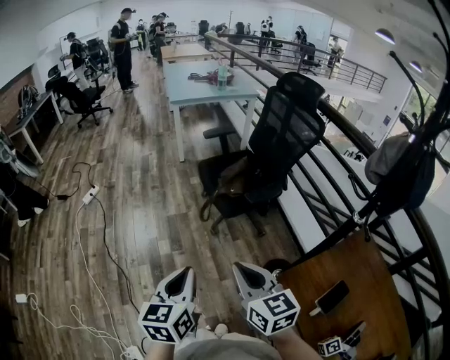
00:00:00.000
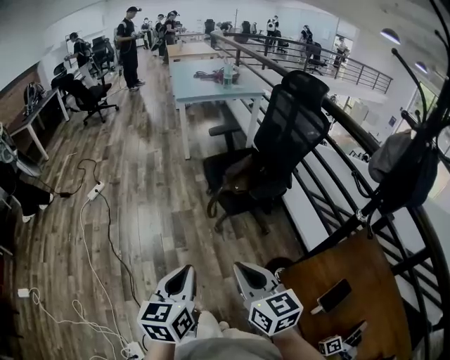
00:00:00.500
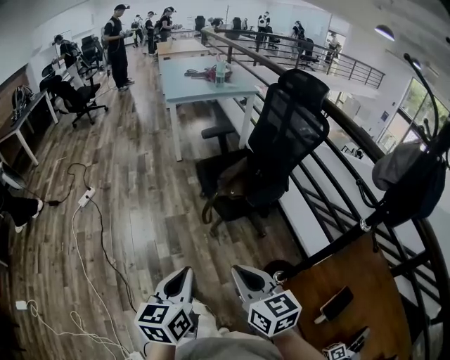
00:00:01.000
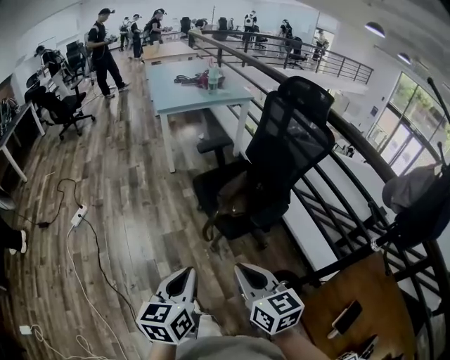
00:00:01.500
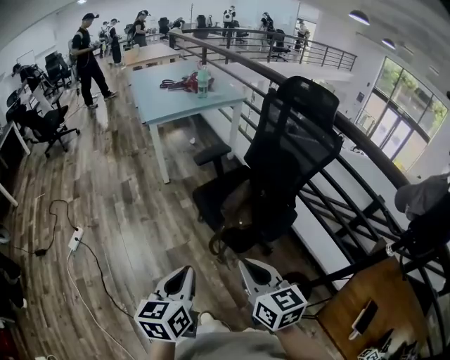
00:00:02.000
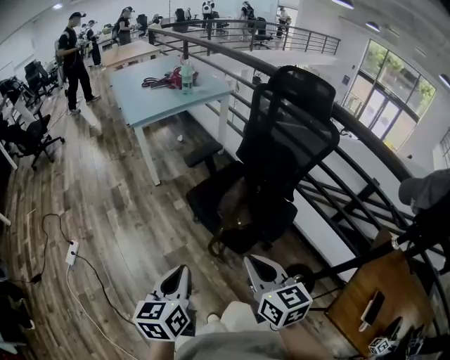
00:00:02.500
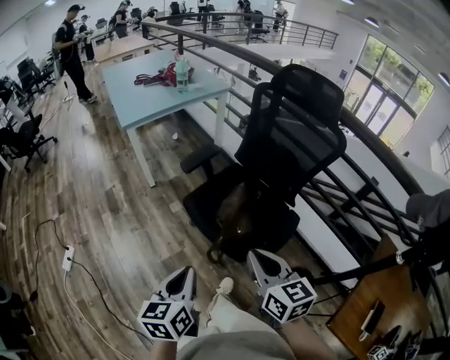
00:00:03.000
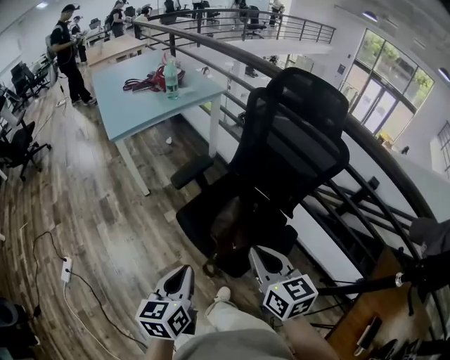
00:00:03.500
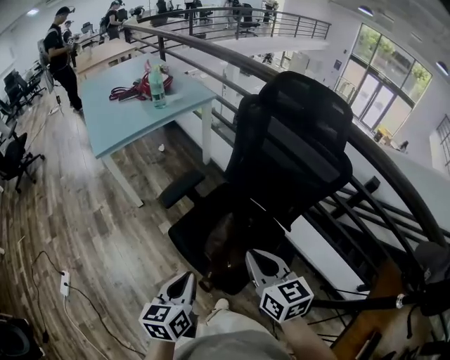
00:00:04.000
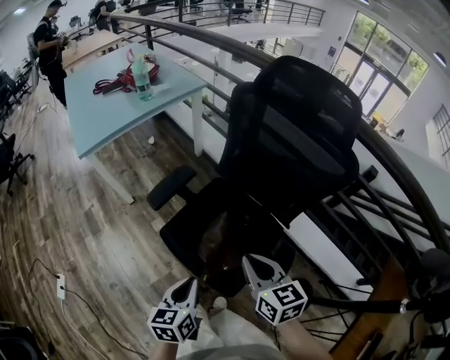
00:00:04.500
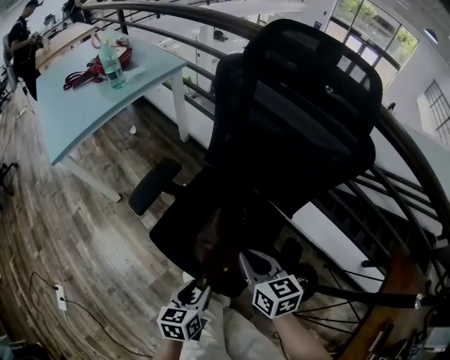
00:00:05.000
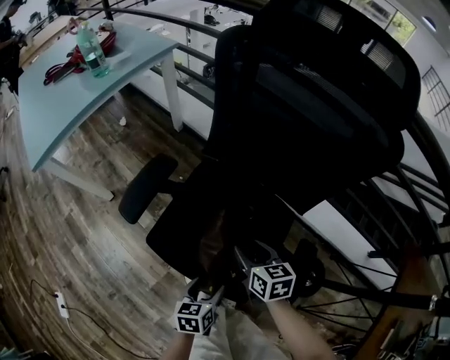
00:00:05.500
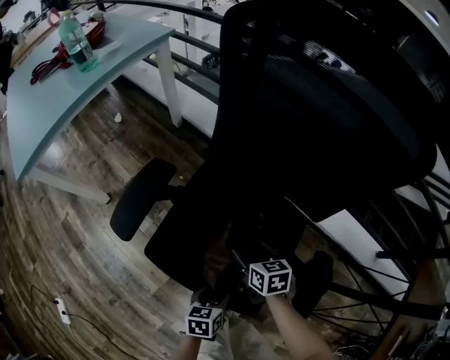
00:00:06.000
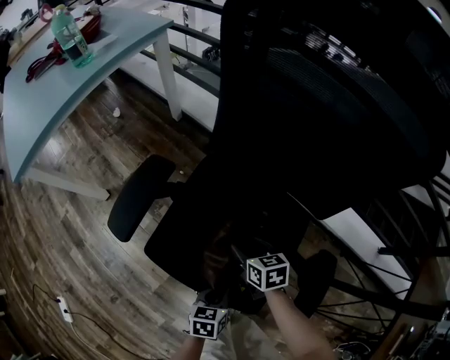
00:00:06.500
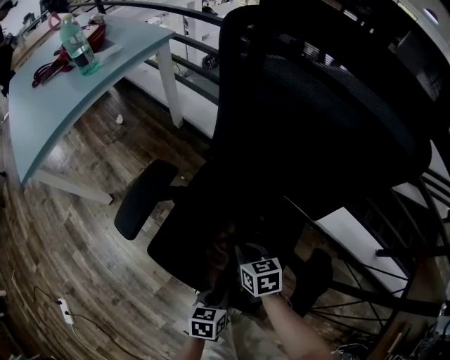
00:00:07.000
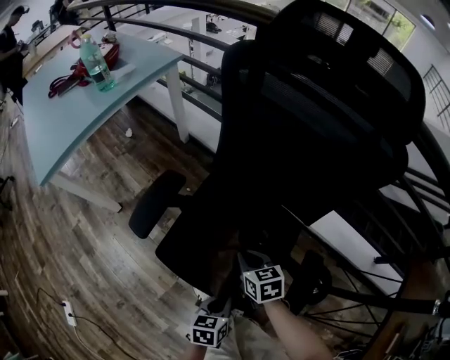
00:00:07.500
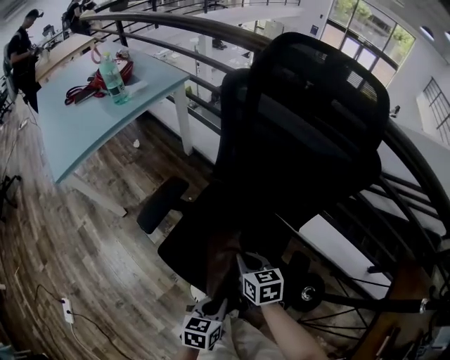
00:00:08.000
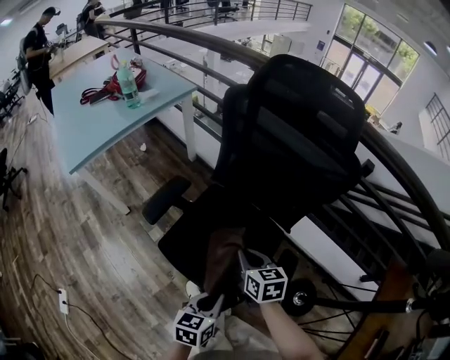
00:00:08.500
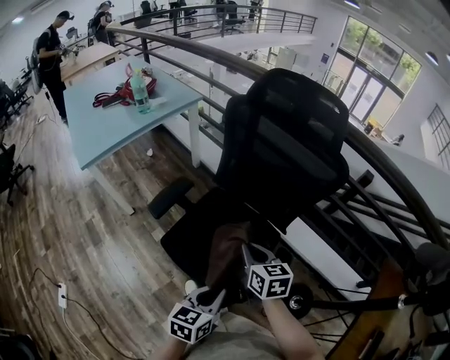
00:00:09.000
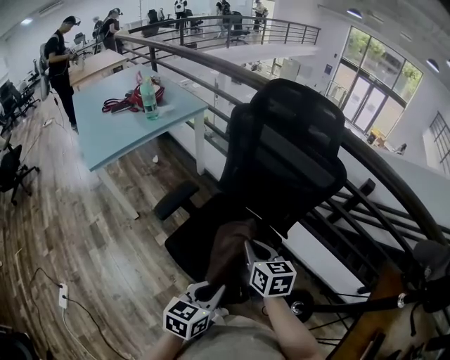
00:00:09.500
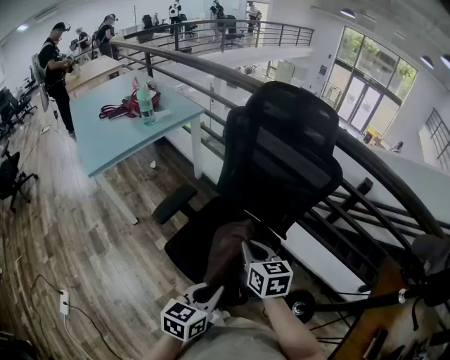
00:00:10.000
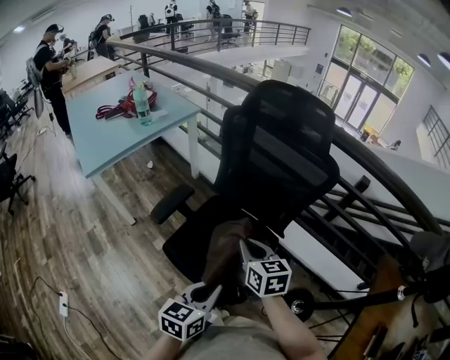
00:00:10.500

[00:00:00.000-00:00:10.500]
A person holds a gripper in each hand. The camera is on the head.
00:00:00.000 to 00:00:02.000: The two grippers go some 30 cm forward.
00:00:02.000 to 00:00:04.000: Both grippers move forward, about 30 cm.
00:00:04.000 to 00:00:06.500: The right gripper shifts roughly 50 cm downward and forward, turns by some 40 degrees, and opens its fingers, while the left gripper goes about 40 cm downward, changes its angle by about 40 degrees, and opens, then closes again.
00:00:06.500 to 00:00:08.500: Both grippers travel together upward, some 25 cm. The right gripper closes.
00:00:08.500 to 00:00:10.500: Both grippers move upward, some 10 cm.

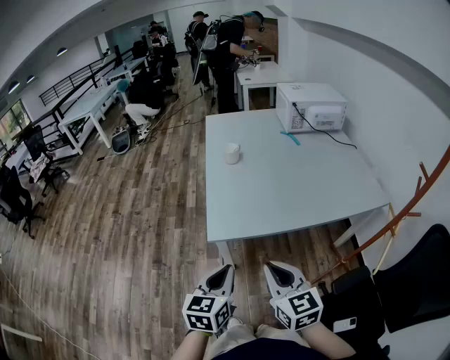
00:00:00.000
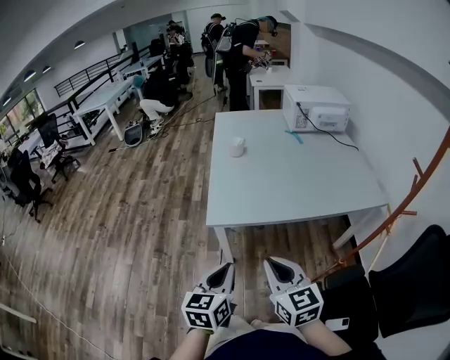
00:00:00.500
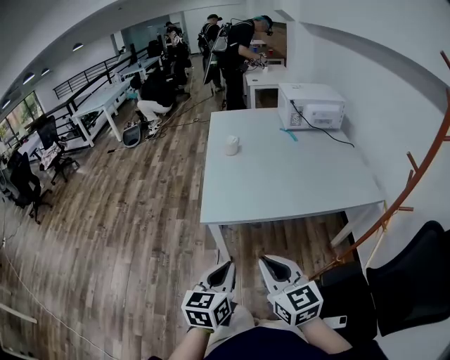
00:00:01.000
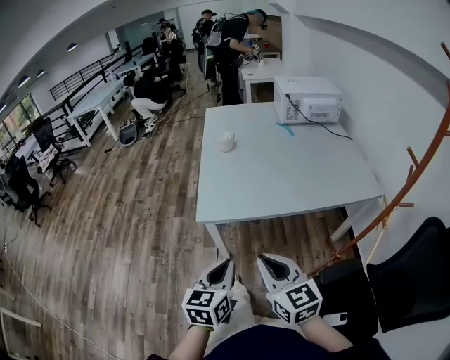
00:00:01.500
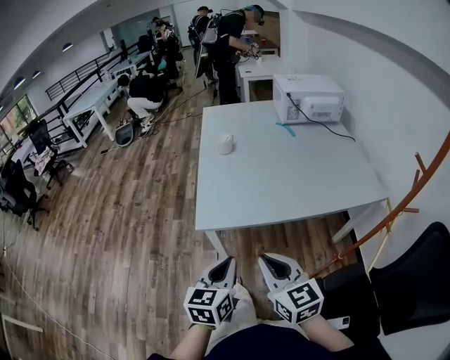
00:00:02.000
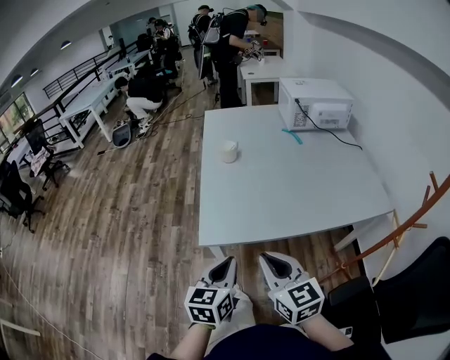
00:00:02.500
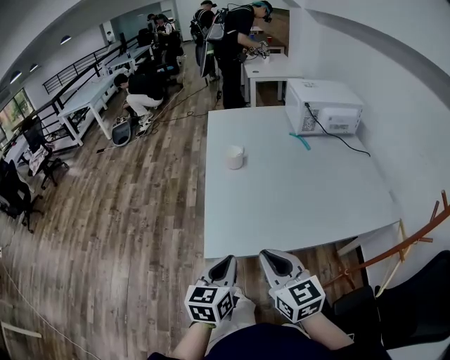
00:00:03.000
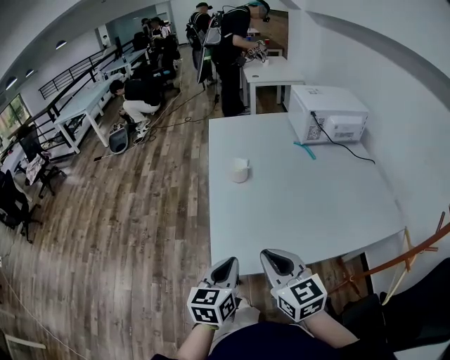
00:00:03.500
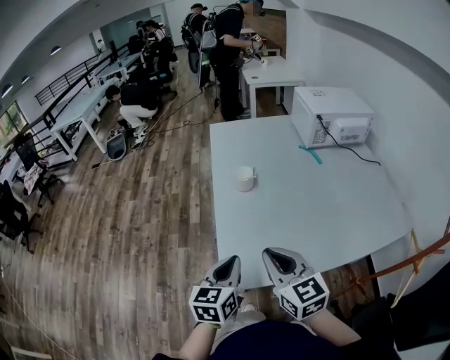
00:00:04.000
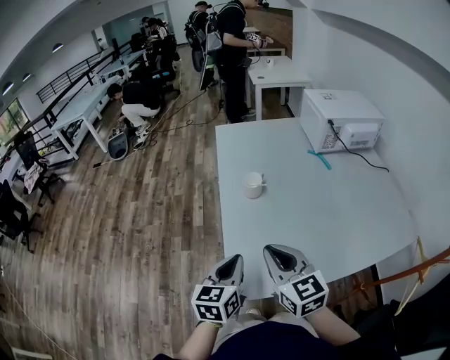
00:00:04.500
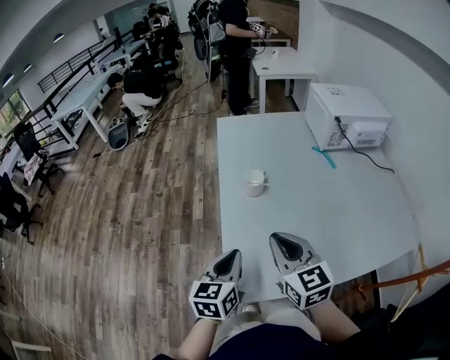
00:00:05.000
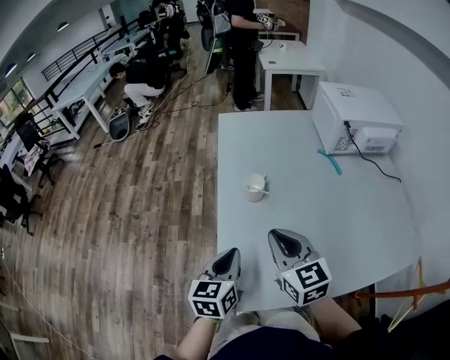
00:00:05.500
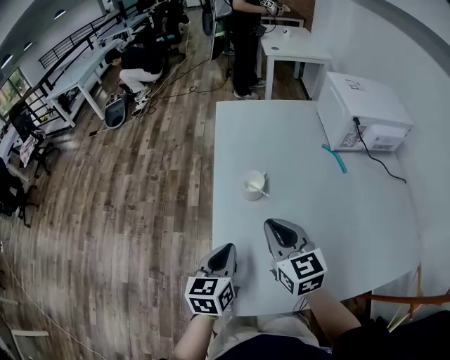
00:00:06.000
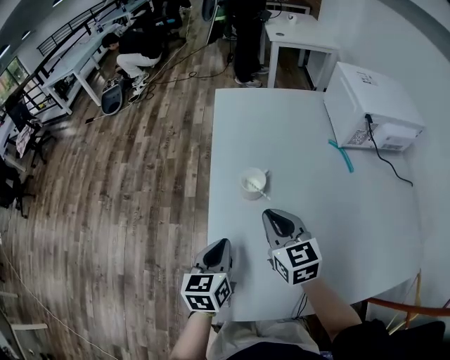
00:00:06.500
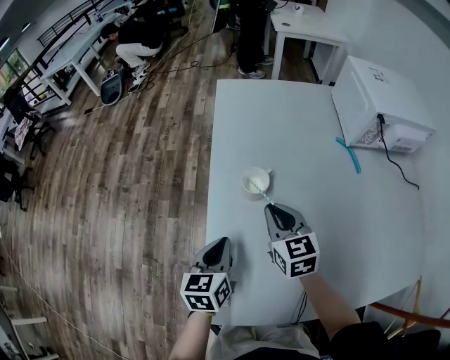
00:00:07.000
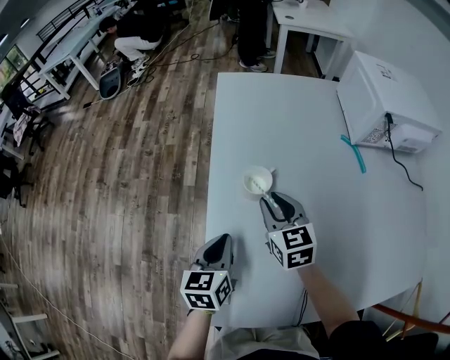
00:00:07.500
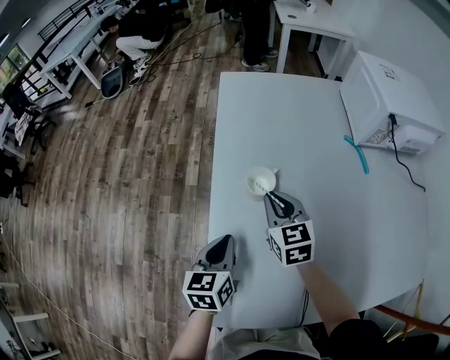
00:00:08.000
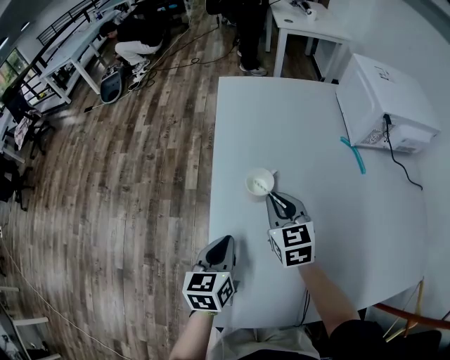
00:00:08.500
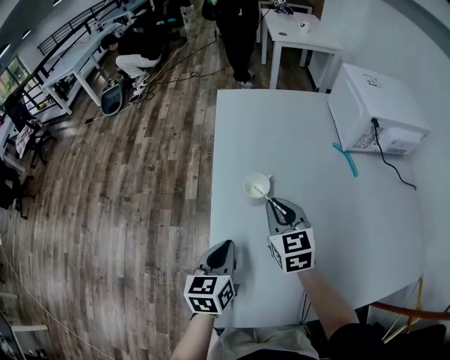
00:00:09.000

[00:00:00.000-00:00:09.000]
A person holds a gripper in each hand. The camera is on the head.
00:00:00.000 to 00:00:02.000: The left gripper shifts roughly 5 cm to the right, and travels backward and back again, about 10 cm each way; the right gripper goes backward and returns, approximately 10 cm each way.
00:00:02.000 to 00:00:04.500: Both grippers travel together forward, about 30 cm.
00:00:04.500 to 00:00:07.000: The two grippers go about 25 cm forward and downward.
00:00:07.000 to 00:00:09.000: The grippers make only small movements.

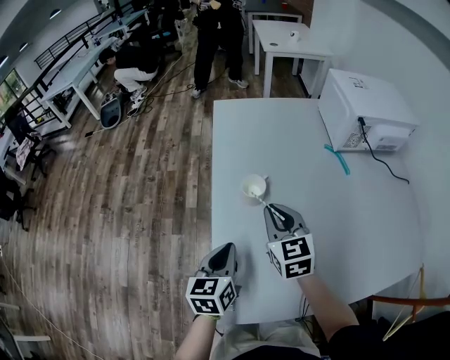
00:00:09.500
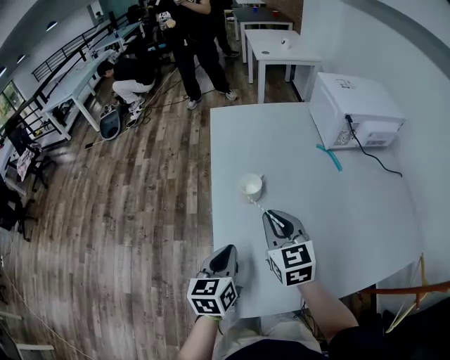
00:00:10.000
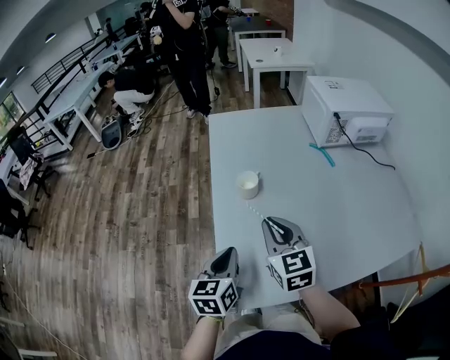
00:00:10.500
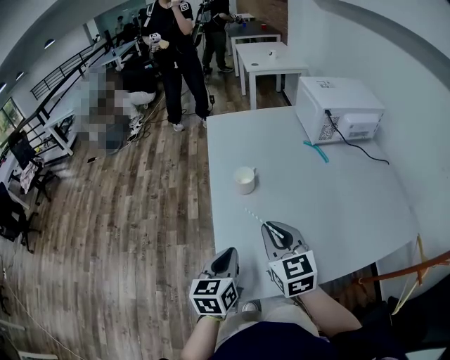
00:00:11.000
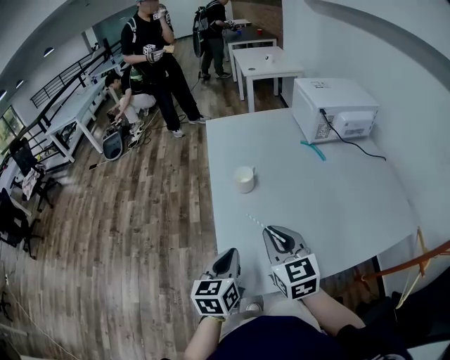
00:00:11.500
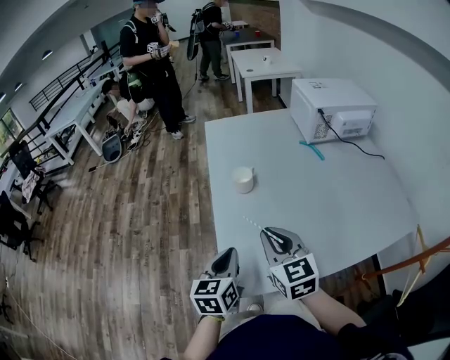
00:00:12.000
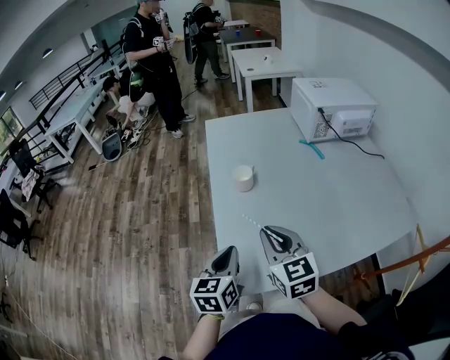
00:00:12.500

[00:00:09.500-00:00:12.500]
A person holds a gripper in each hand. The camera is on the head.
00:00:09.500 to 00:00:11.000: Both grippers move backward, some 15 cm.
00:00:11.000 to 00:00:12.500: The grippers make only small movements.

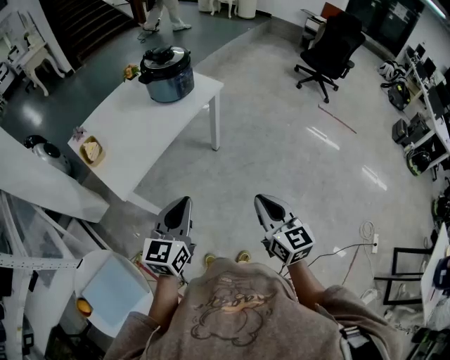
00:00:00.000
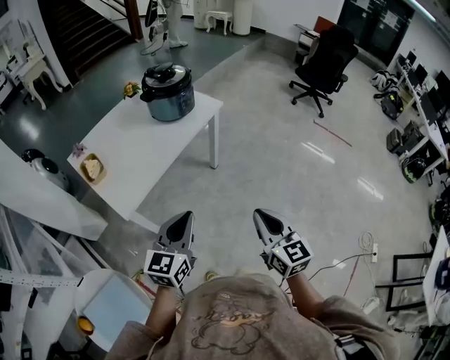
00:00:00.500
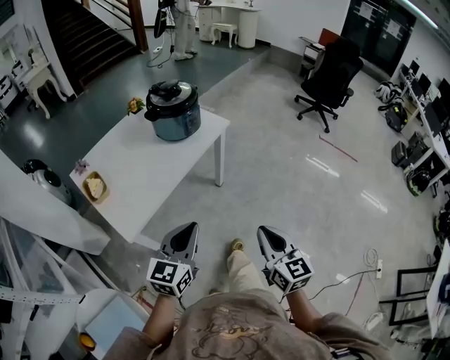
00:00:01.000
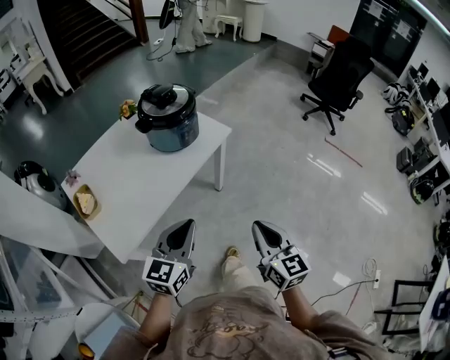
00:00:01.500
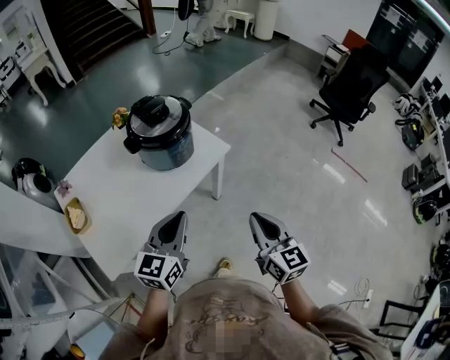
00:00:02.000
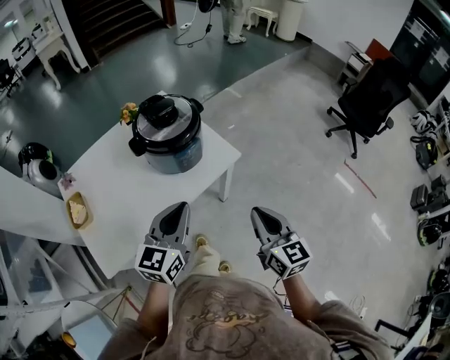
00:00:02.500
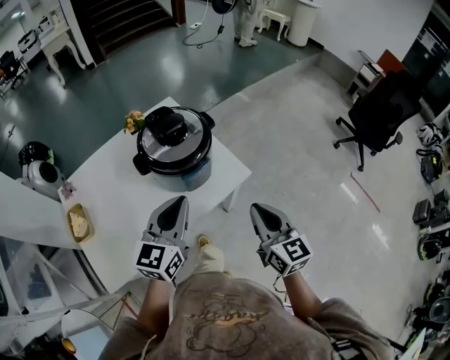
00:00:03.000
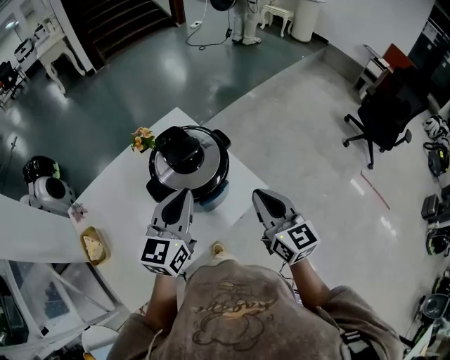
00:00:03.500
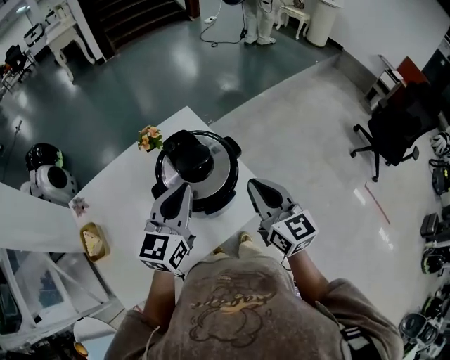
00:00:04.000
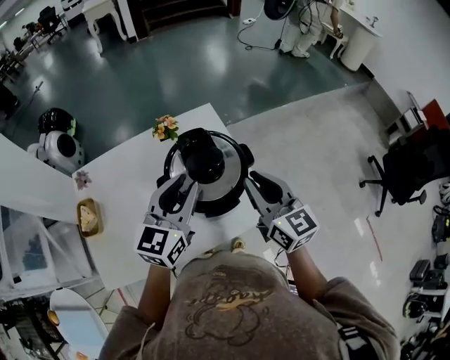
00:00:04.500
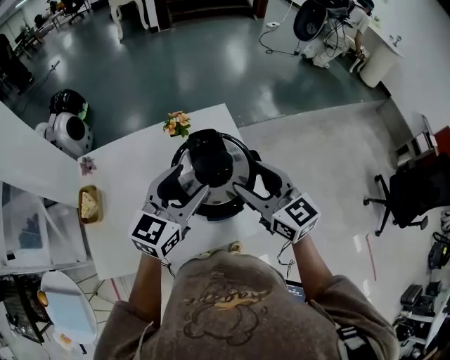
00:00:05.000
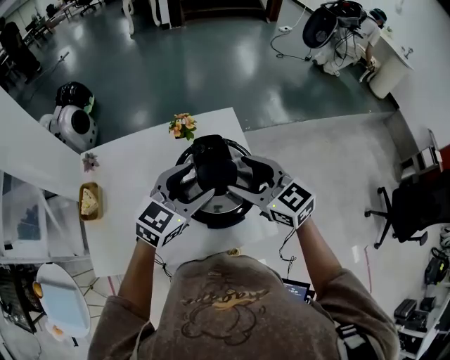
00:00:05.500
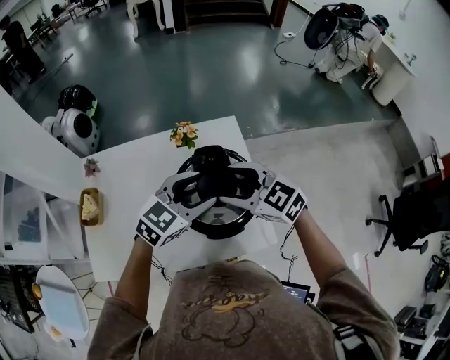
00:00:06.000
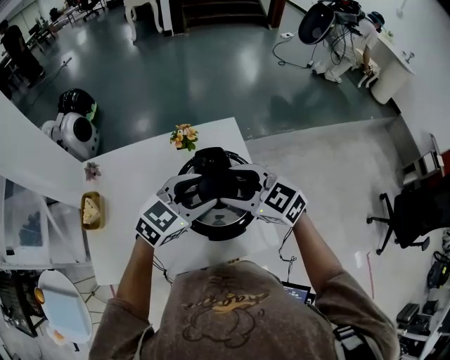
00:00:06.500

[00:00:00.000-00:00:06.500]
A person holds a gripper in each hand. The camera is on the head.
00:00:00.000 to 00:00:02.000: The two grippers go approximately 35 cm forward.
00:00:02.000 to 00:00:04.500: The left gripper ends up approximately 30 cm from where it was, and swivels approximately 20 degrees; the right gripper moves about 40 cm, and swivels roughly 30 degrees.
00:00:04.500 to 00:00:06.500: The left gripper shifts by some 10 cm, swivels some 30 degrees, and opens. Meanwhile the right gripper is displaced to the left and forward by roughly 10 cm, turns by about 50 degrees, and opens its fingers.
